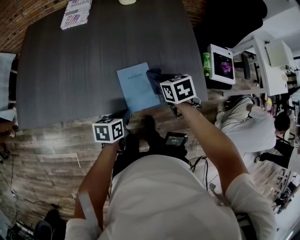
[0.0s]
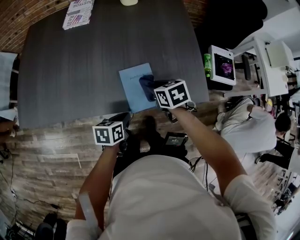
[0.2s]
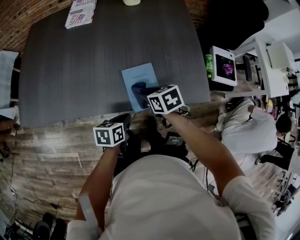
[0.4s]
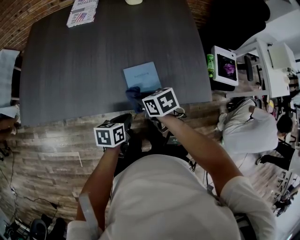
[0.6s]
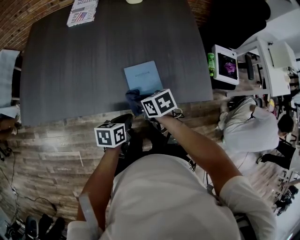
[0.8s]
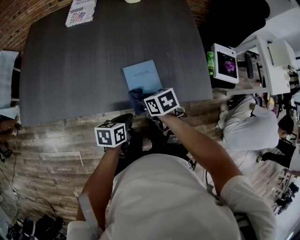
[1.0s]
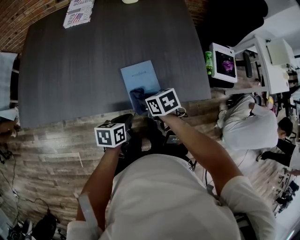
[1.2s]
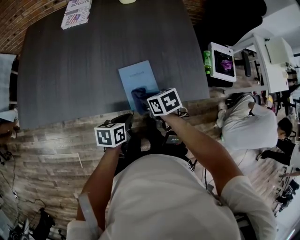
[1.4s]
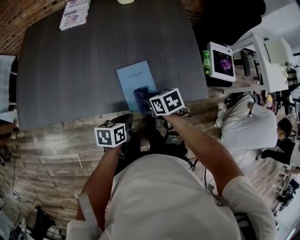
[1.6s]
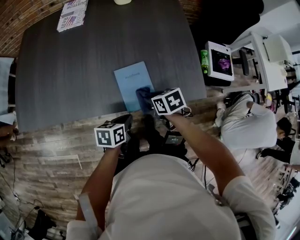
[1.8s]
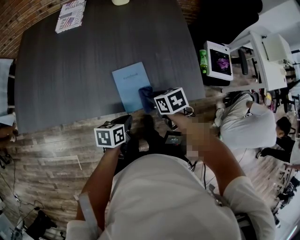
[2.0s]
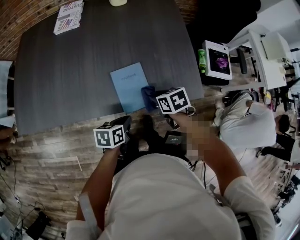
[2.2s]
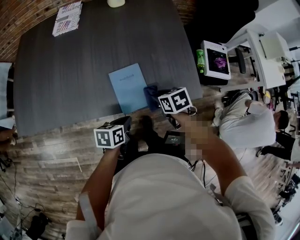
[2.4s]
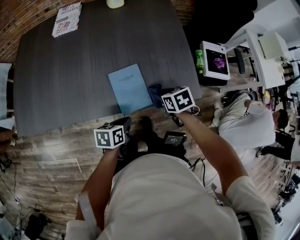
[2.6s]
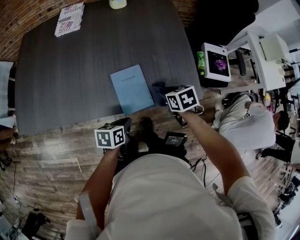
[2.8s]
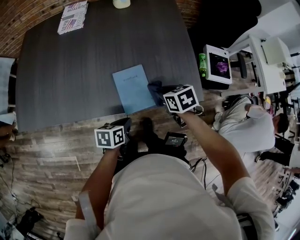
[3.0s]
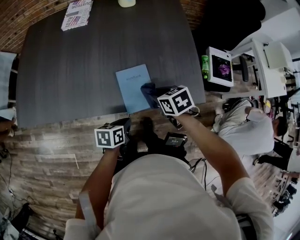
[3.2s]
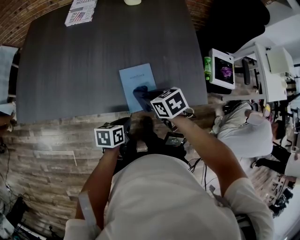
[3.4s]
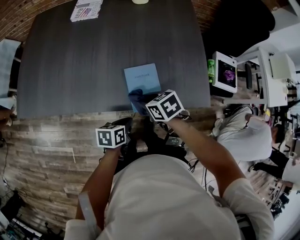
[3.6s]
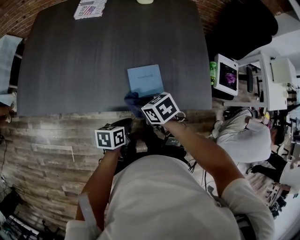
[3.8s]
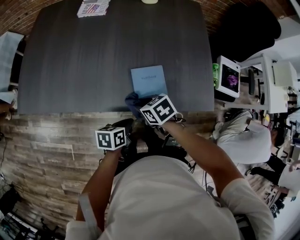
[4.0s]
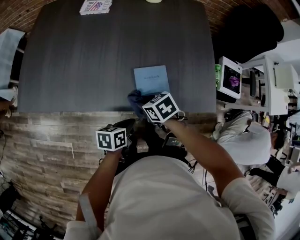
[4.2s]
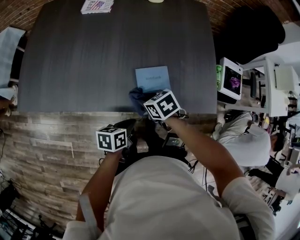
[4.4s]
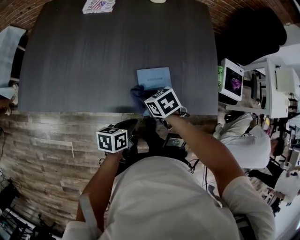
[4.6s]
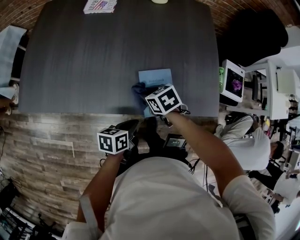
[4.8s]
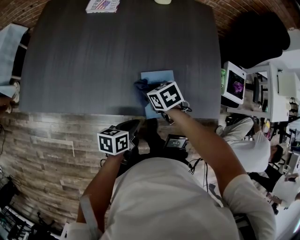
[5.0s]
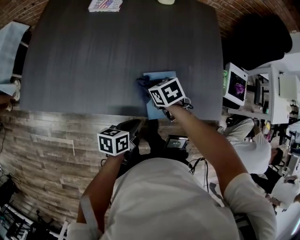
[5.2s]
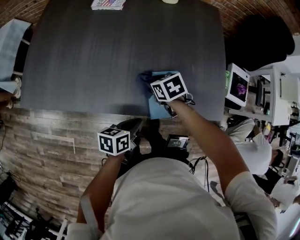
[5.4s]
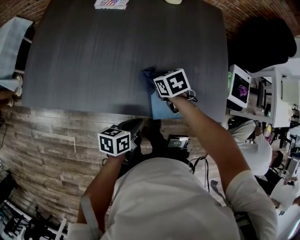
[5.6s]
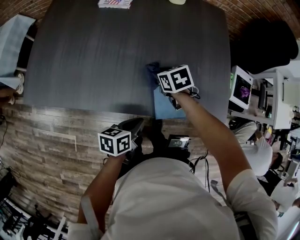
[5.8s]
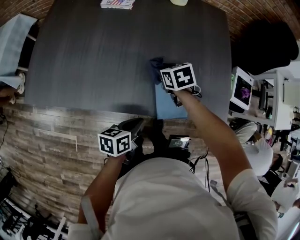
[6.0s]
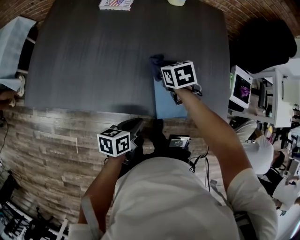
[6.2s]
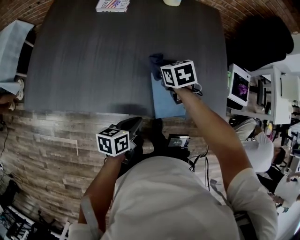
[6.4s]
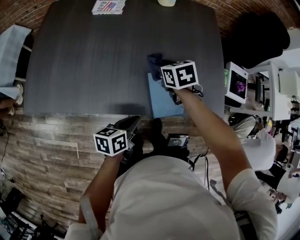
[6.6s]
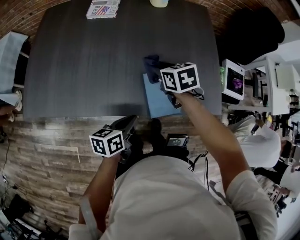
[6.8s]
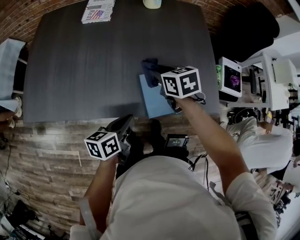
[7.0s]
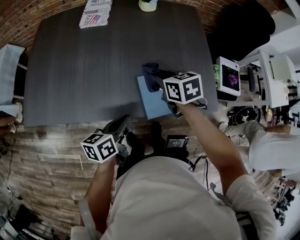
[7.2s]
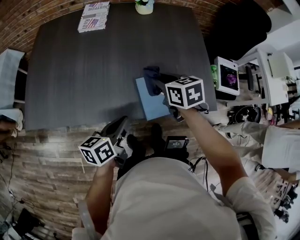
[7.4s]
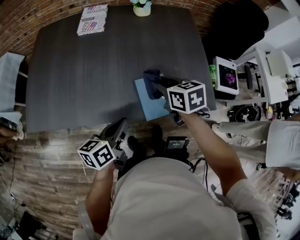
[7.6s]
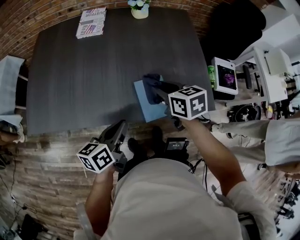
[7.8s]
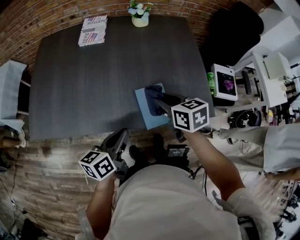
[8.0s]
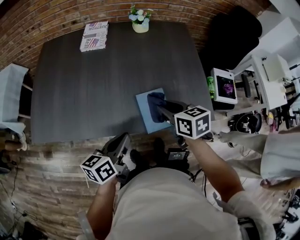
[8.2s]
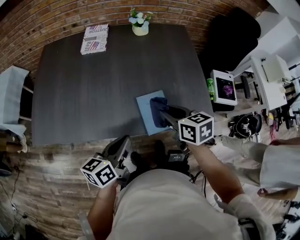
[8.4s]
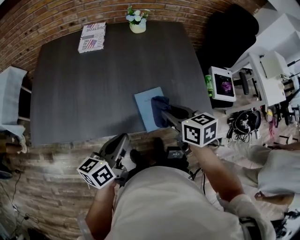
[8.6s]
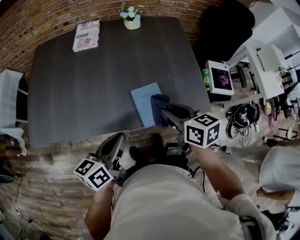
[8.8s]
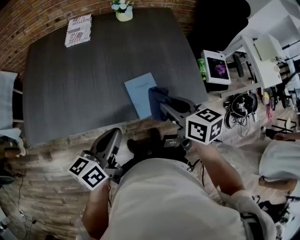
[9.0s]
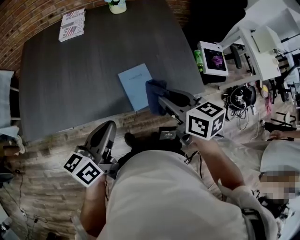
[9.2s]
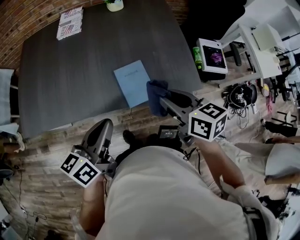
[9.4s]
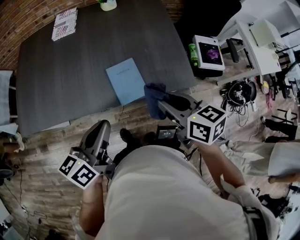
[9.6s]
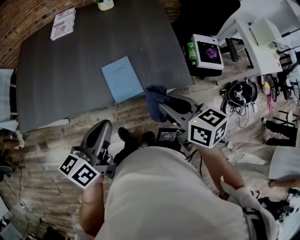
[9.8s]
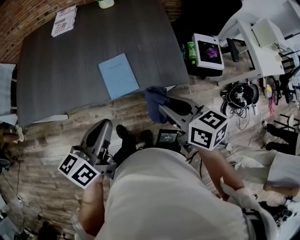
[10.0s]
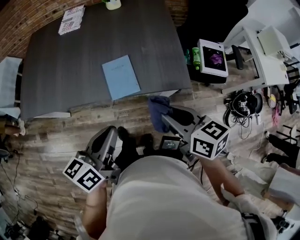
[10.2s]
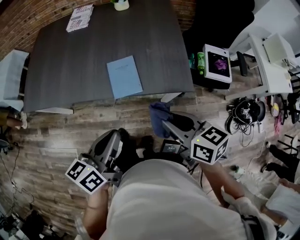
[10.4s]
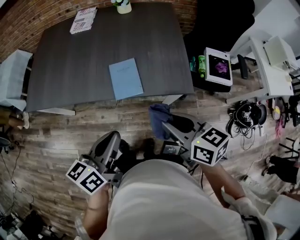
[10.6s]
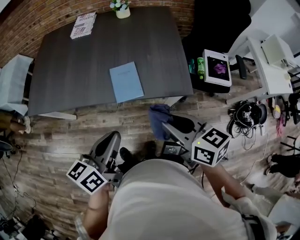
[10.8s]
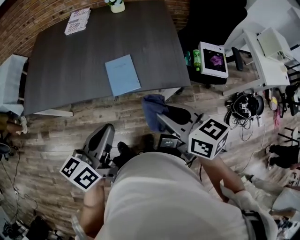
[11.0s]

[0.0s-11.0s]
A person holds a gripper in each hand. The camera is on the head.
0.0s to 1.6s: The right gripper travels backward, to the left and downward by roughly 10 cm.
1.6s to 3.2s: The right gripper reaches roughly 10 cm to the right, then returns.
3.2s to 4.8s: The right gripper goes about 15 cm to the left.
4.8s to 6.2s: The right gripper is displaced forward by some 10 cm. Meanwhile the left gripper ends up roughly 5 cm from where it was.
6.2s to 7.8s: The right gripper is displaced upward, backward and to the right by roughly 15 cm, and turns by roughly 20 degrees, while the left gripper heads upward, covering approximately 10 cm.
7.8s to 9.4s: The right gripper moves backward, to the right and upward, some 15 cm; the left gripper shifts some 10 cm upward and backward.
9.4s to 11.0s: The grippers both shift backward and to the right by about 15 cm.

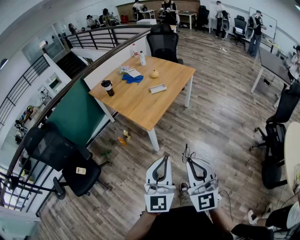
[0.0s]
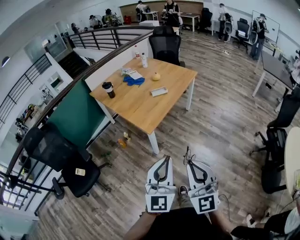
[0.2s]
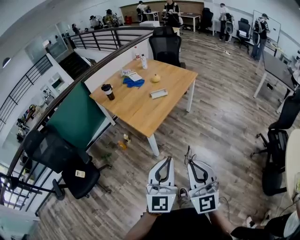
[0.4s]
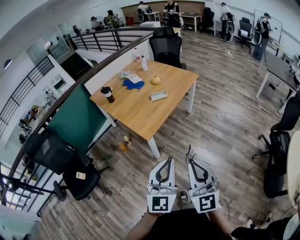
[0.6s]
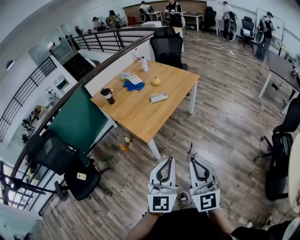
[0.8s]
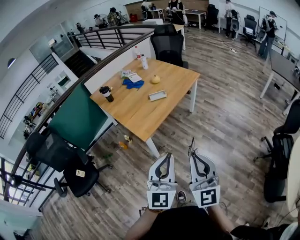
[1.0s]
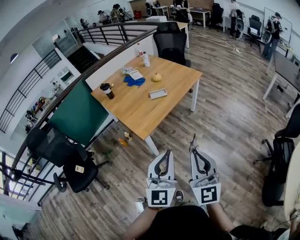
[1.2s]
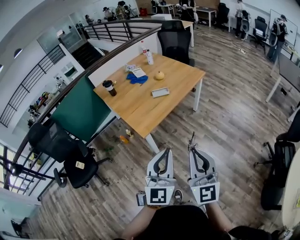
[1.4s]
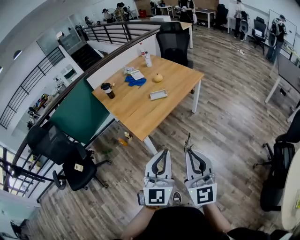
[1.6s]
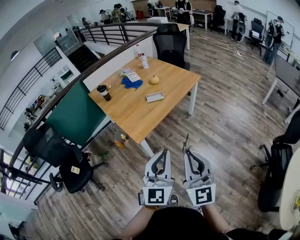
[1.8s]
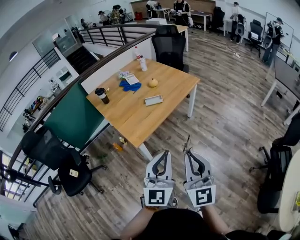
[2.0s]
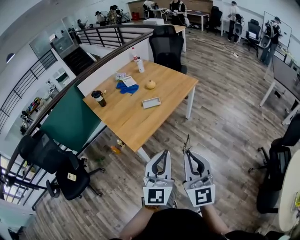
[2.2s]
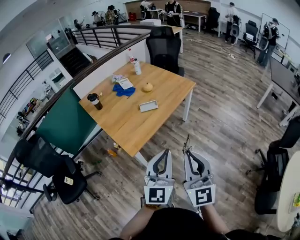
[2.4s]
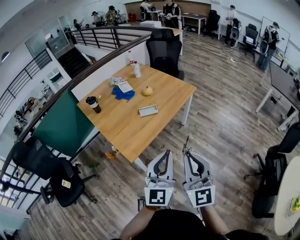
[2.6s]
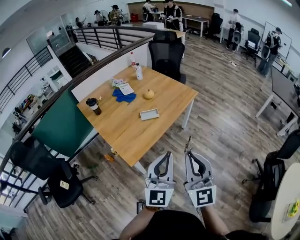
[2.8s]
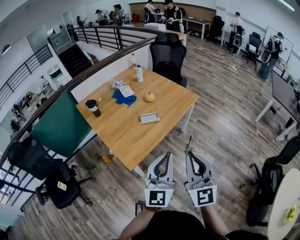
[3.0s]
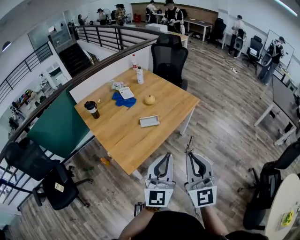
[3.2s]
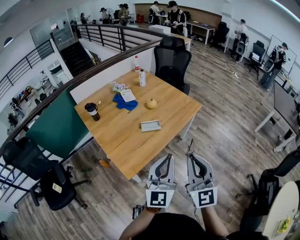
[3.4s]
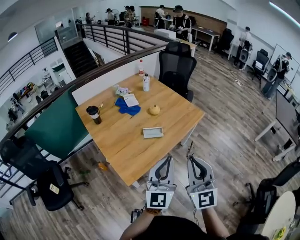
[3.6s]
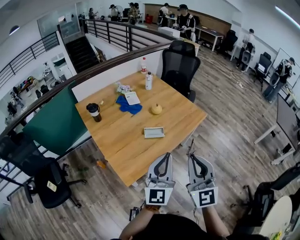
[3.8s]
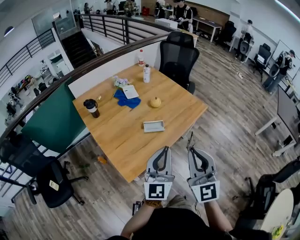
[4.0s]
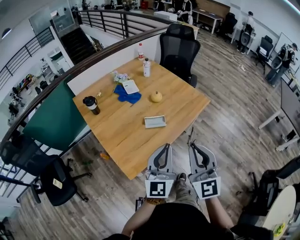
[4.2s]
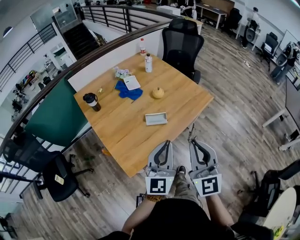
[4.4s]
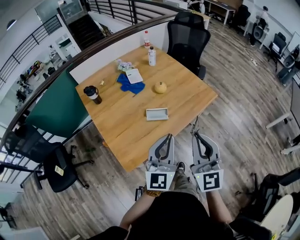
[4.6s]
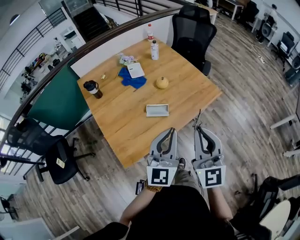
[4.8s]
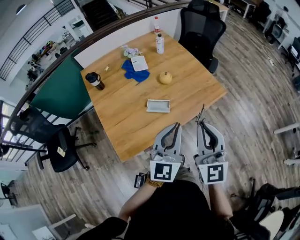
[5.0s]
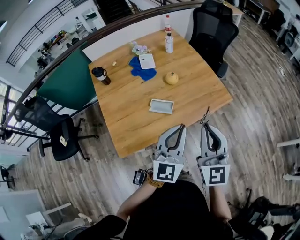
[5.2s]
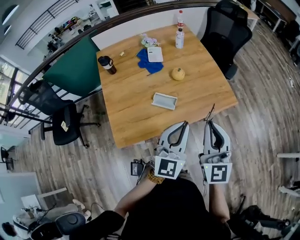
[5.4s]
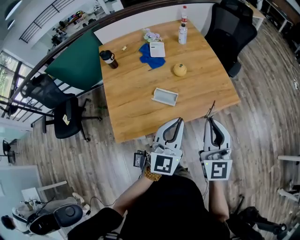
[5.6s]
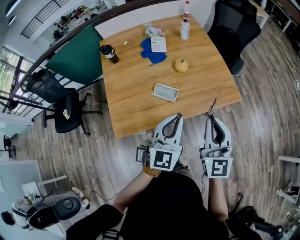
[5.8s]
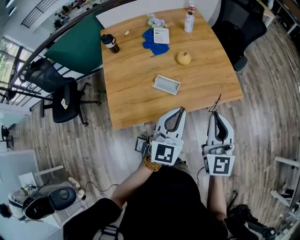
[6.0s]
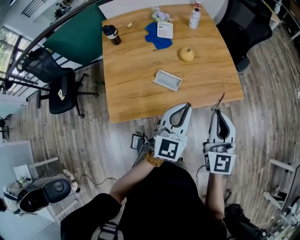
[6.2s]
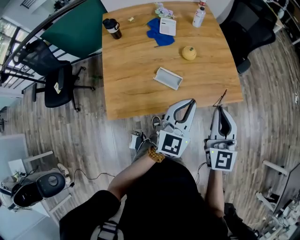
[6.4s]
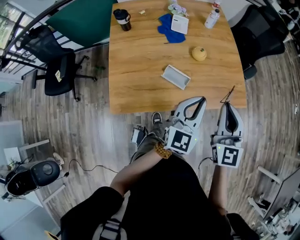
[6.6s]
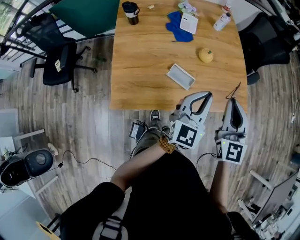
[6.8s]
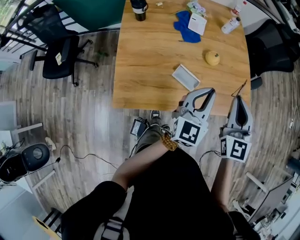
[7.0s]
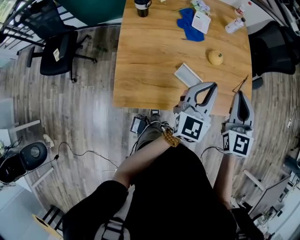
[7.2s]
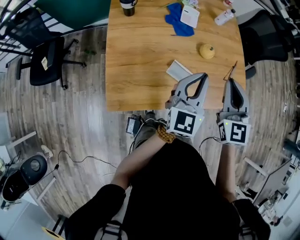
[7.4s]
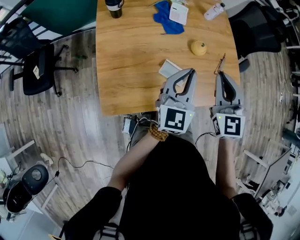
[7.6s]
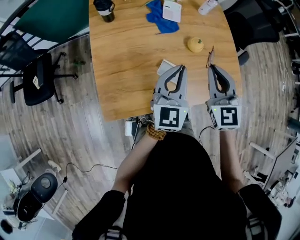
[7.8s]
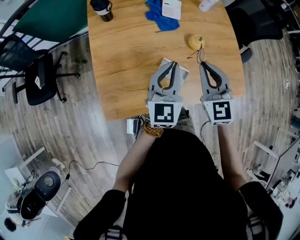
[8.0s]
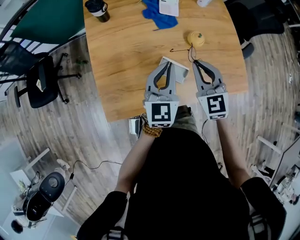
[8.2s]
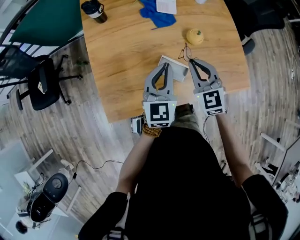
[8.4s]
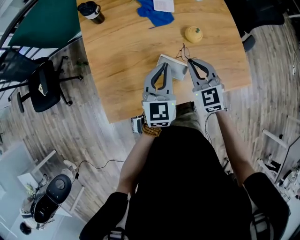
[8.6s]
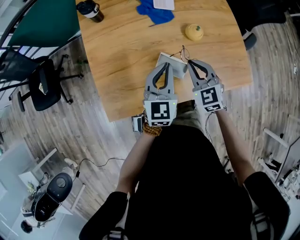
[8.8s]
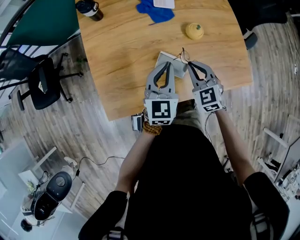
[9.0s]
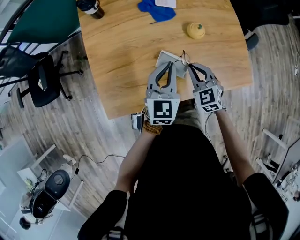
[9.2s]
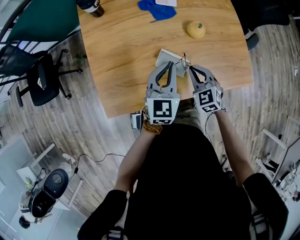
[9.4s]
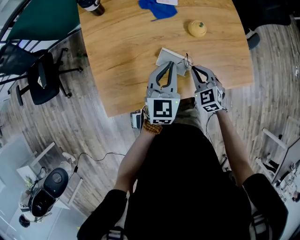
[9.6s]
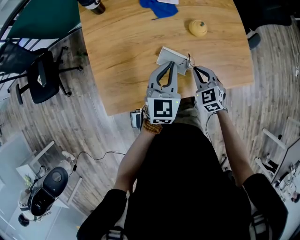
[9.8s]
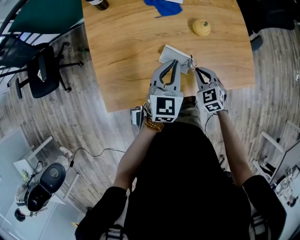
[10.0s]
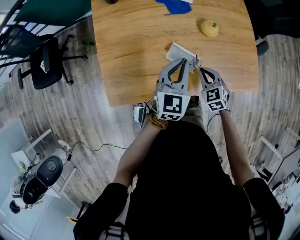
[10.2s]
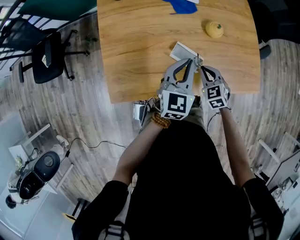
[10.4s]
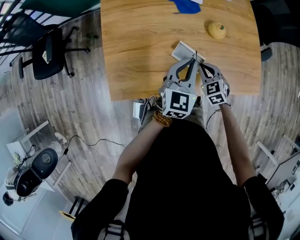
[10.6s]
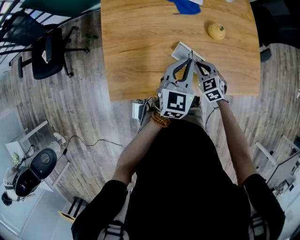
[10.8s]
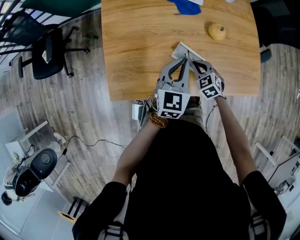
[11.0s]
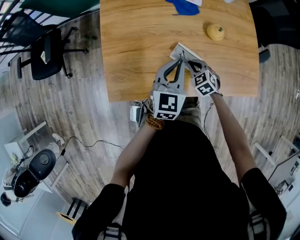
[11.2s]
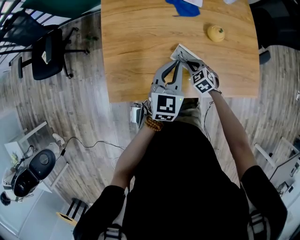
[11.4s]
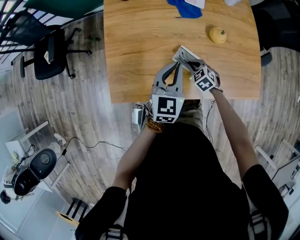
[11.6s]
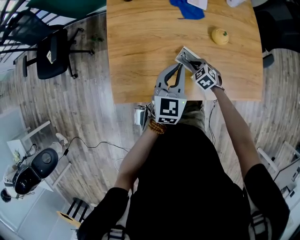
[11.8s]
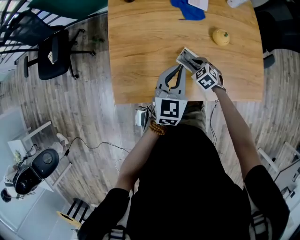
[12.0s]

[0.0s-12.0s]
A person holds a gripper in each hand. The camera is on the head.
0.0s to 1.6s: The grippers both shift forward and to the right by approximately 20 cm.
1.6s to 3.0s: The two grippers go about 20 cm forward.
3.0s to 4.4s: Both grippers travel together forward, some 20 cm.
4.4s to 6.0s: The left gripper moves to the right and forward, roughly 20 cm, and turns by some 20 degrees; the right gripper goes about 25 cm to the right, forward and downward, and swivels about 20 degrees.
6.0s to 7.6s: Both grippers move forward and to the left, about 20 cm. The right gripper swivels roughly 20 degrees.
7.6s to 9.0s: The left gripper travels downward by roughly 10 cm; the right gripper is displaced downward by approximately 20 cm, and turns by roughly 20 degrees.
9.0s to 10.4s: The right gripper shifts approximately 10 cm downward.
10.4s to 12.0s: The right gripper goes roughly 10 cm downward, to the left and forward, while the left gripper goes some 5 cm to the left.

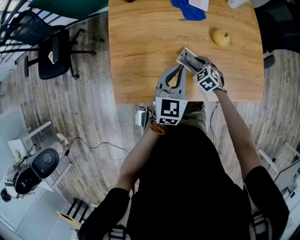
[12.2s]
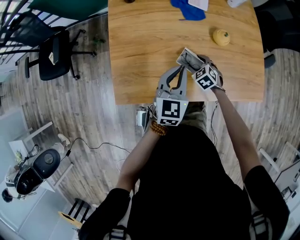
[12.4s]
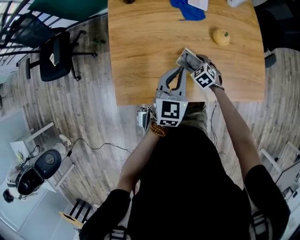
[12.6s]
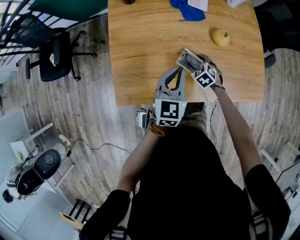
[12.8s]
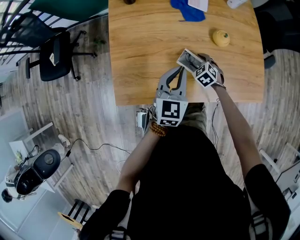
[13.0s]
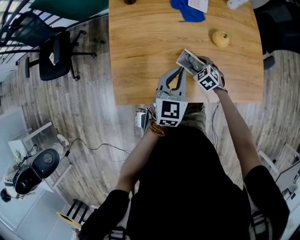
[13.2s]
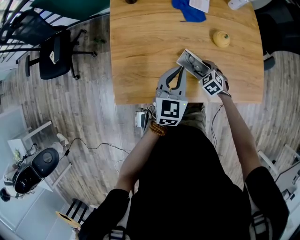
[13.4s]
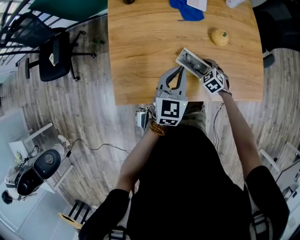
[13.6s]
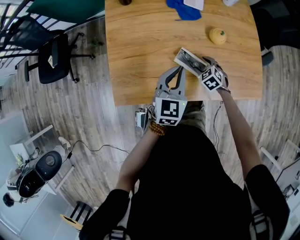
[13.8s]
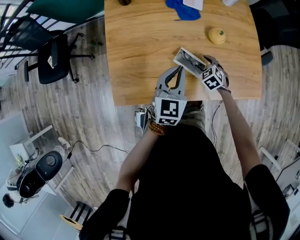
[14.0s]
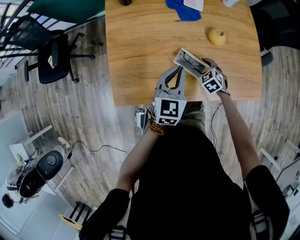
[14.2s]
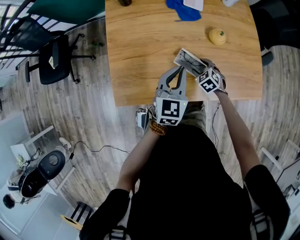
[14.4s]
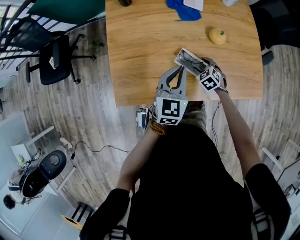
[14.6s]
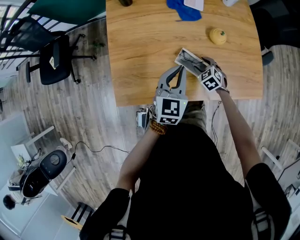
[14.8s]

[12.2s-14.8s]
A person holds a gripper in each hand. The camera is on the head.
12.2s to 14.8s: There are only small adjustments of the grippers.
